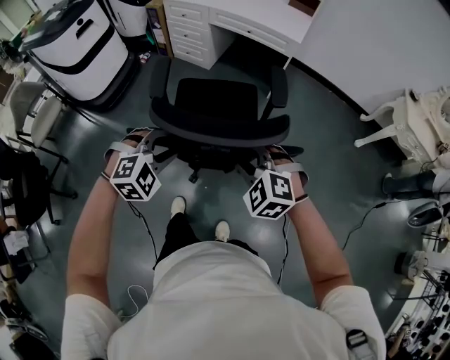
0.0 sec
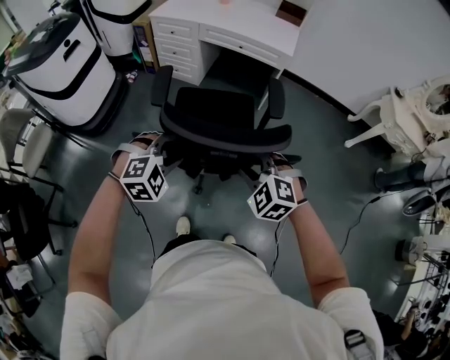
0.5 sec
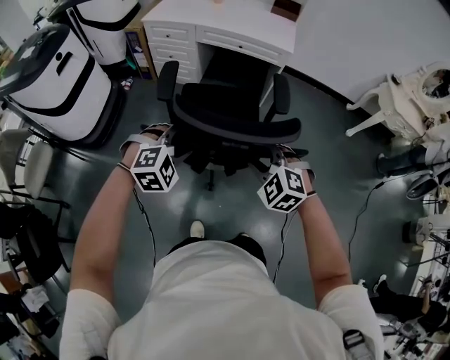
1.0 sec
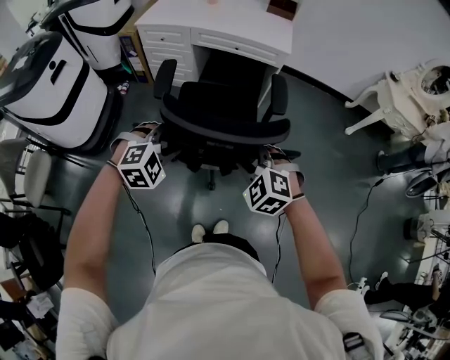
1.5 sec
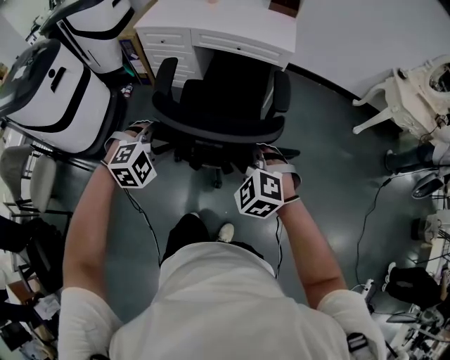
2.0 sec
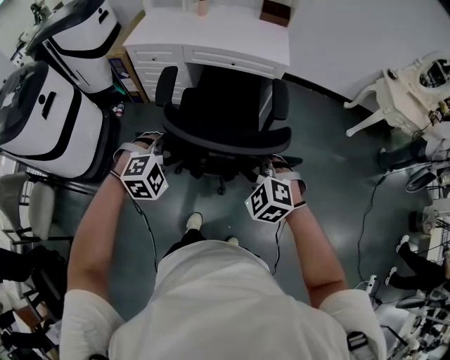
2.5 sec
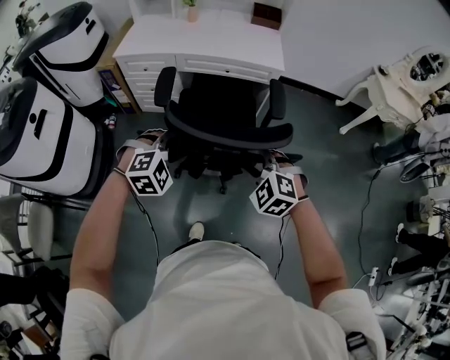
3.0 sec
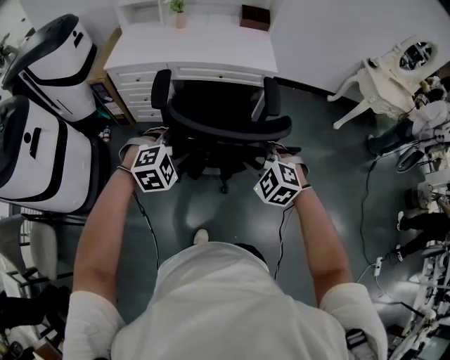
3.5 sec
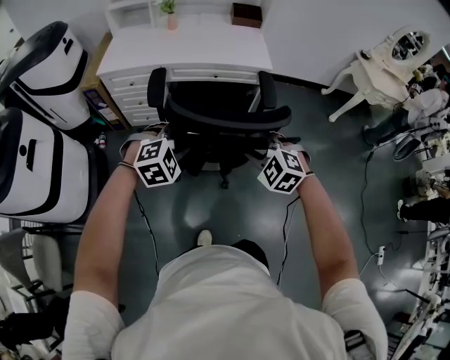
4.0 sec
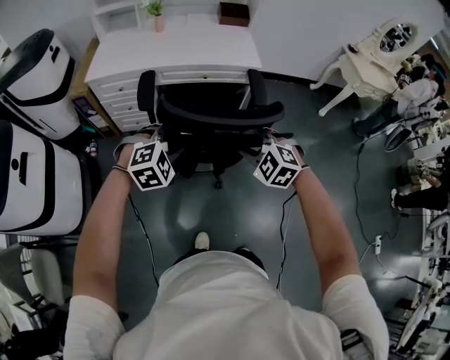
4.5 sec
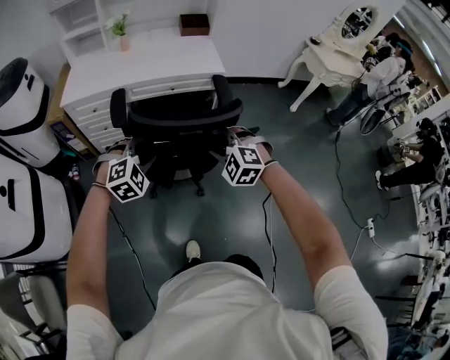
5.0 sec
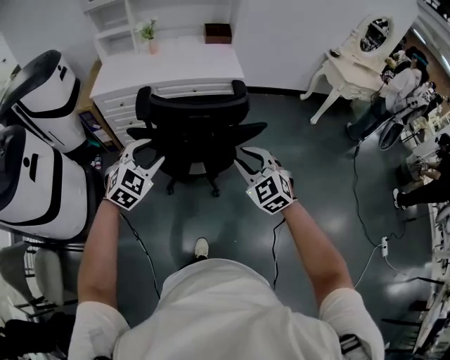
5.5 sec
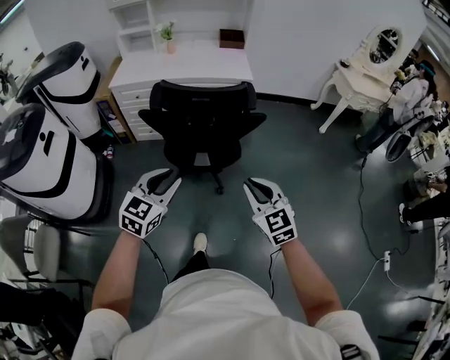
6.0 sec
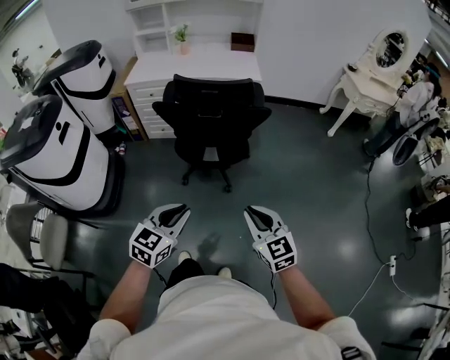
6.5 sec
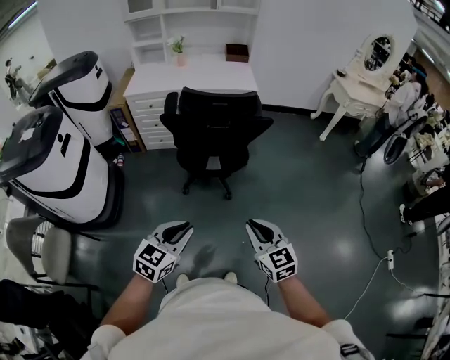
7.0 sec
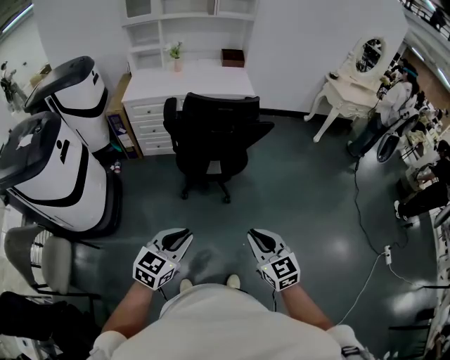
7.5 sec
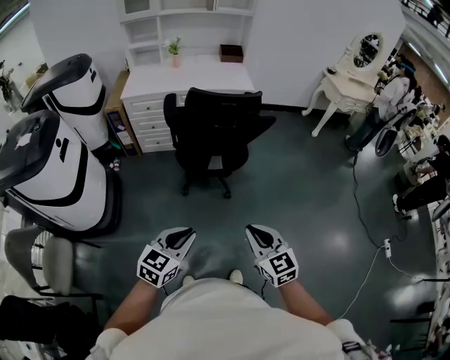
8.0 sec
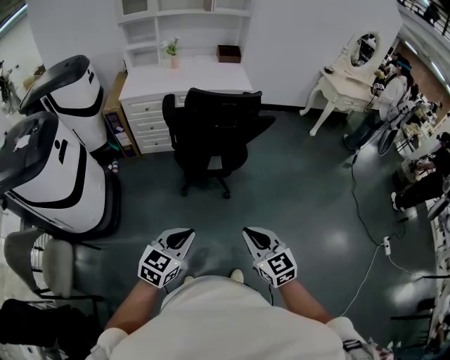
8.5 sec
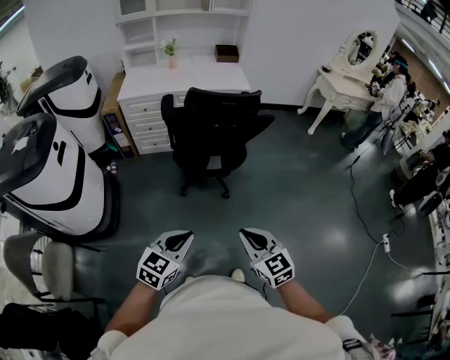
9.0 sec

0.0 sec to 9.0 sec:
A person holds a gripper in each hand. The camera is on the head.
0.0 sec to 2.0 sec: Both grippers move forward and to the left, roughly 25 cm.
2.0 sec to 4.5 sec: The two grippers go about 20 cm forward.
4.5 sec to 7.0 sec: Both grippers are carried backward, about 50 cm. The right gripper twists approximately 50 degrees clockwise, seen from behind. Meanwhile the left gripper twists approximately 50 degrees counterclockwise, seen from behind, and closes up.
7.0 sec to 9.0 sec: The left gripper moves to the left, approximately 5 cm; the right gripper goes some 10 cm to the left and backward.

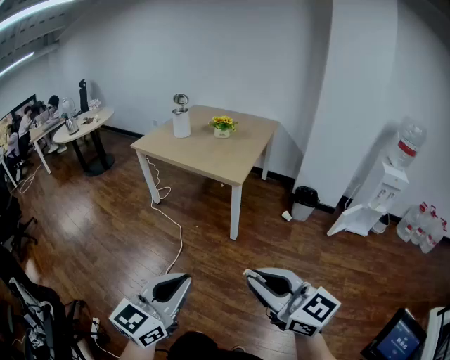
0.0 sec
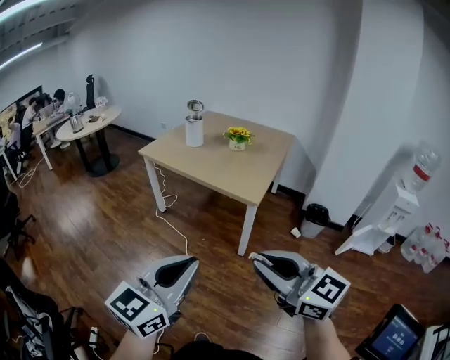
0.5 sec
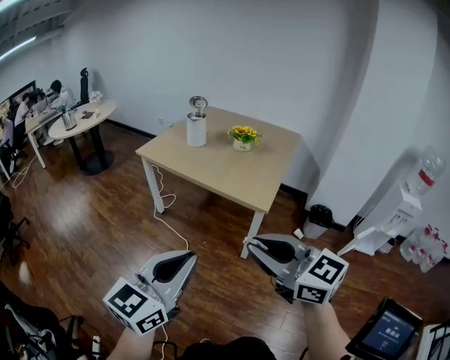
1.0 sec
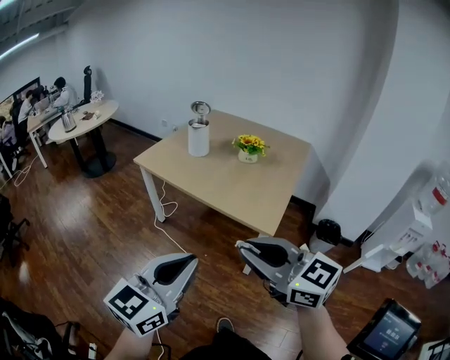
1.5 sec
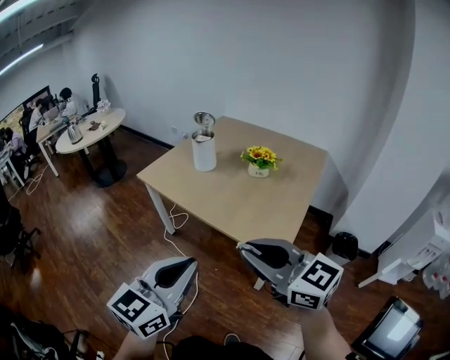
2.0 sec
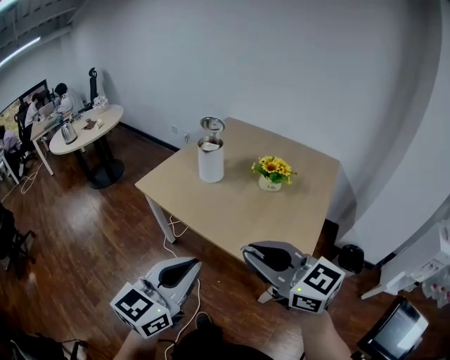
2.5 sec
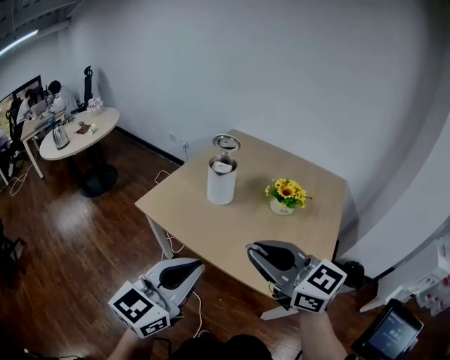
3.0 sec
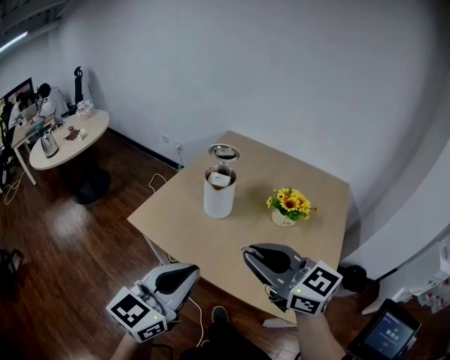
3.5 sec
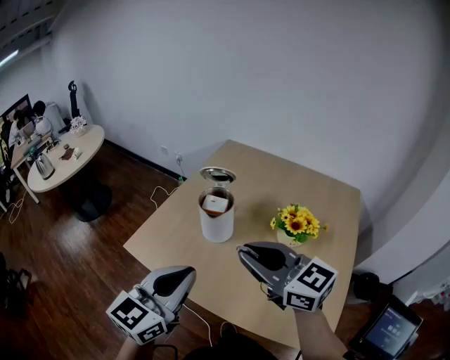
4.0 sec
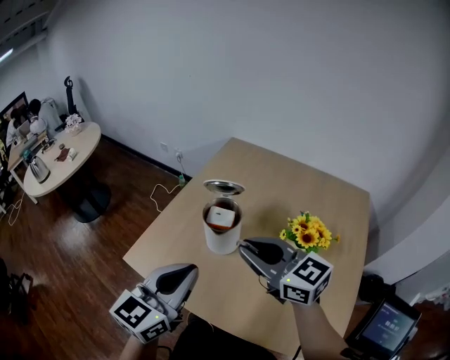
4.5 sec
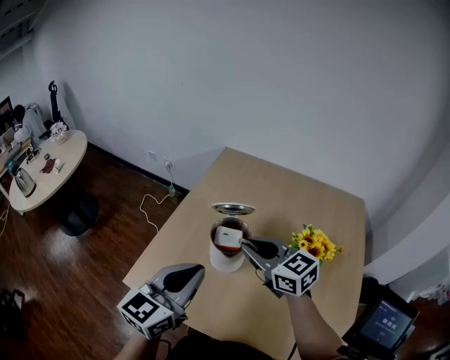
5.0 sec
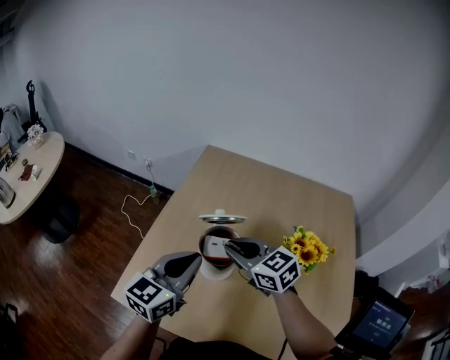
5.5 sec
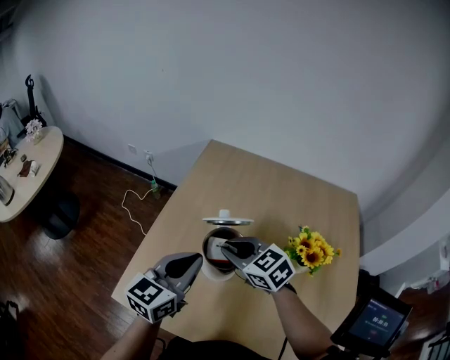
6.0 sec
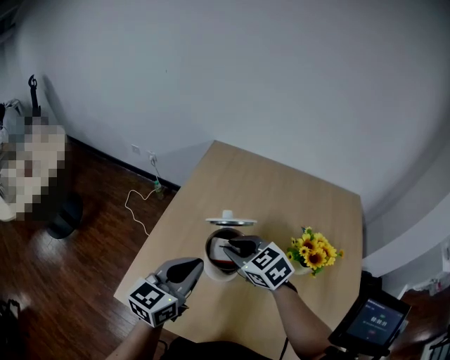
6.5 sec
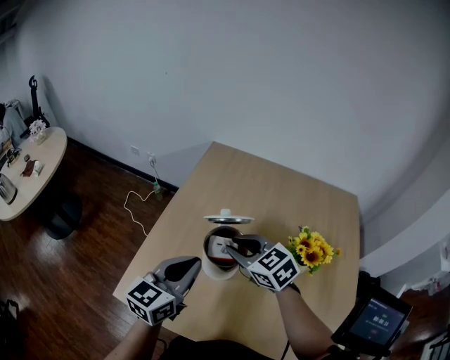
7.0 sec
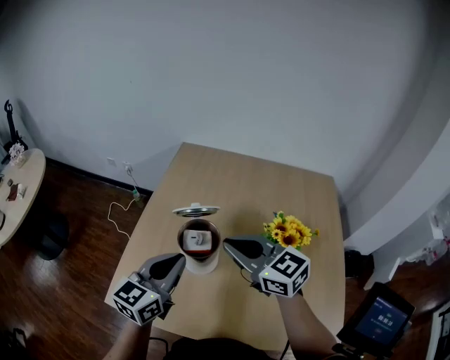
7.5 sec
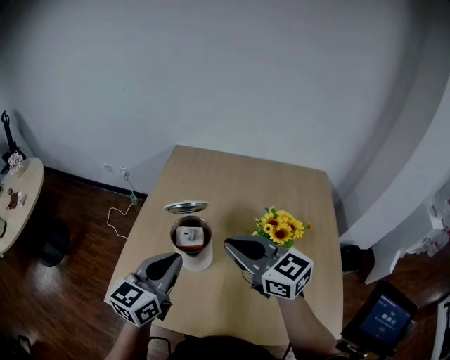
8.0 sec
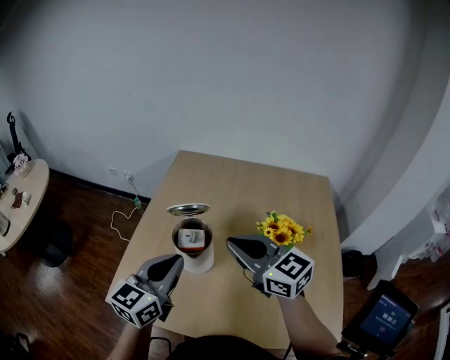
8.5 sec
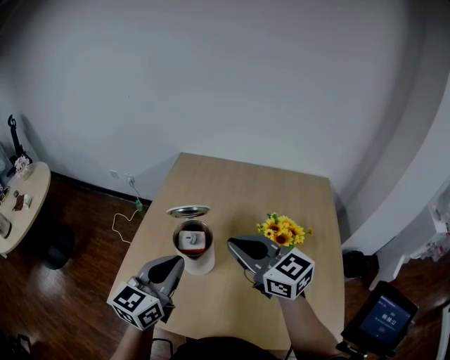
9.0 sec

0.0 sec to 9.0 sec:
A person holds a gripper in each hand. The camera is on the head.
0.0 sec to 2.0 sec: Both grippers are carried forward, about 50 cm.
2.0 sec to 4.5 sec: Both grippers are carried forward, approximately 60 cm.
4.5 sec to 7.0 sec: Both grippers move forward and downward, approximately 20 cm. The right gripper swivels roughly 30 degrees.
7.0 sec to 9.0 sec: The right gripper is displaced upward, backward and to the right by approximately 15 cm, rotates some 30 degrees, and closes up. The left gripper travels backward and upward by roughly 10 cm.

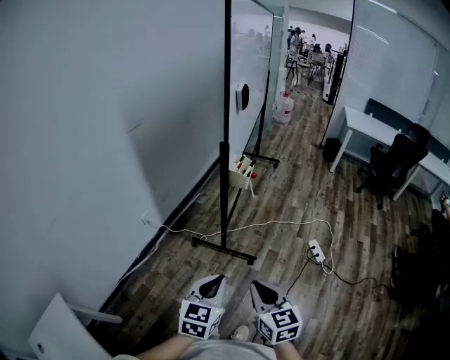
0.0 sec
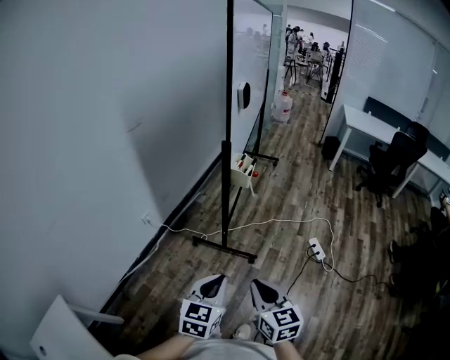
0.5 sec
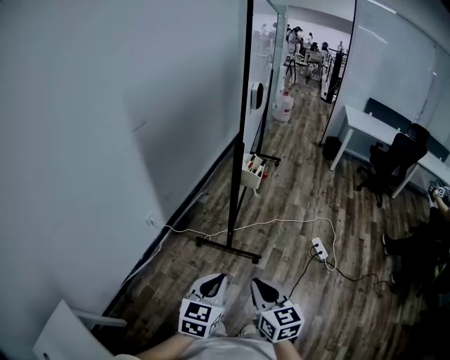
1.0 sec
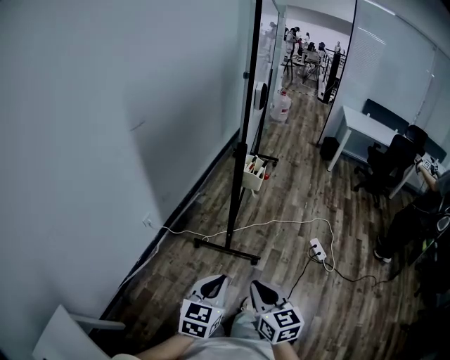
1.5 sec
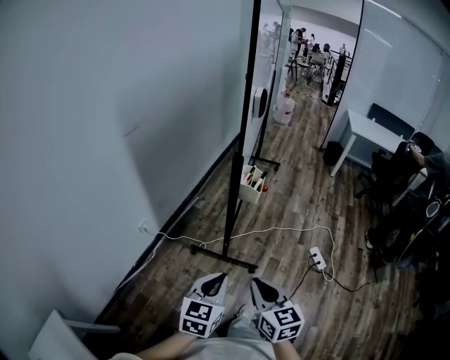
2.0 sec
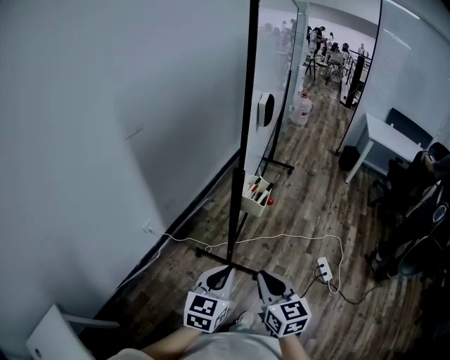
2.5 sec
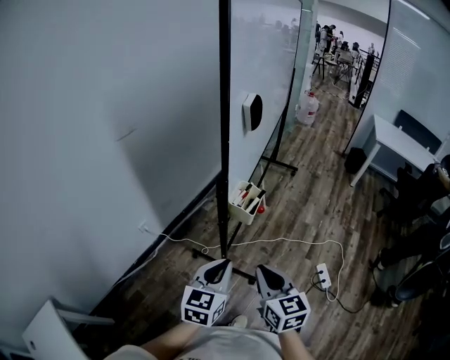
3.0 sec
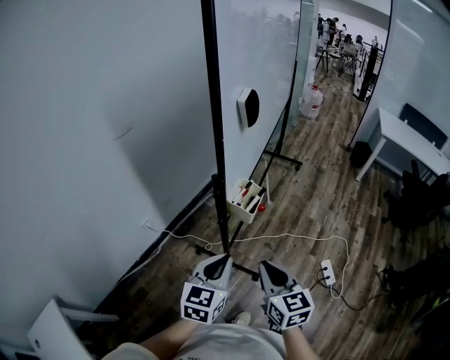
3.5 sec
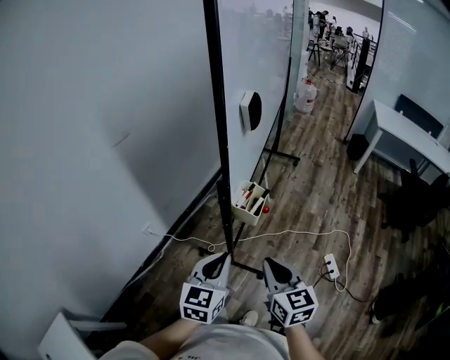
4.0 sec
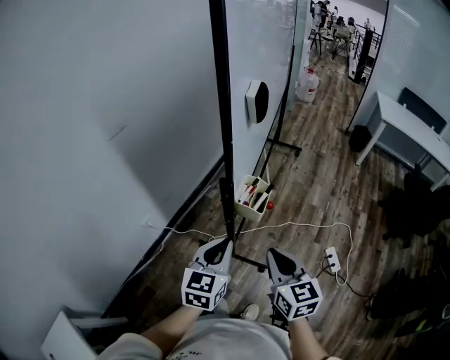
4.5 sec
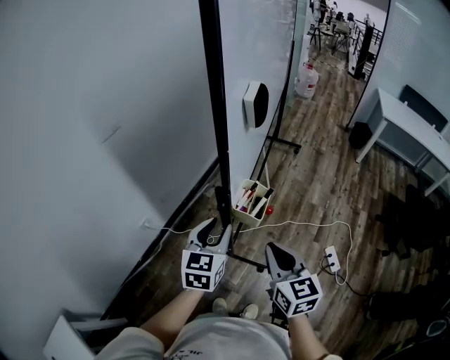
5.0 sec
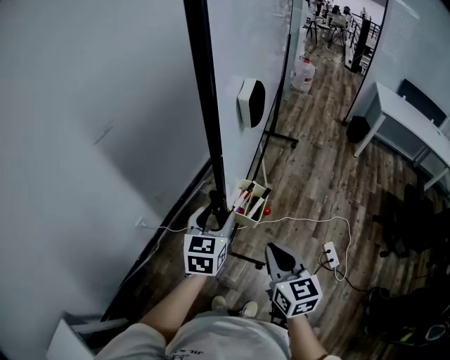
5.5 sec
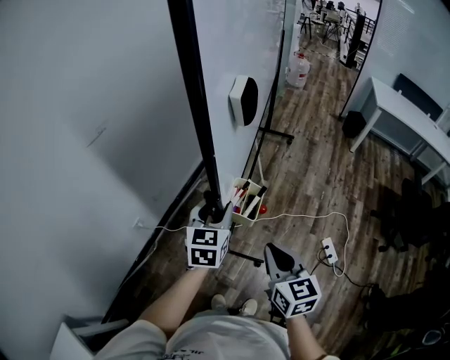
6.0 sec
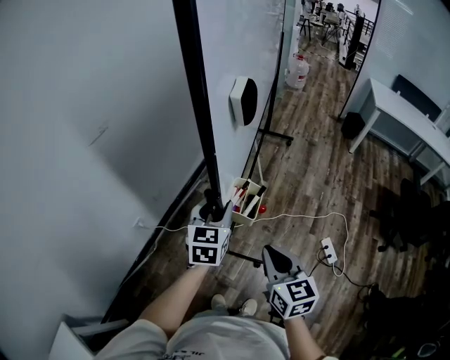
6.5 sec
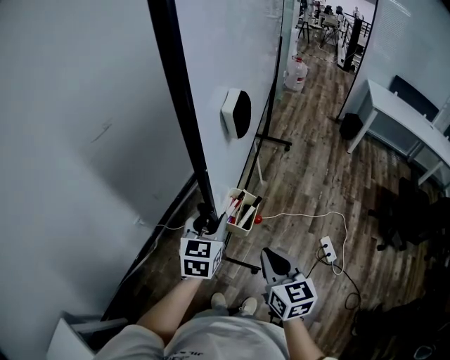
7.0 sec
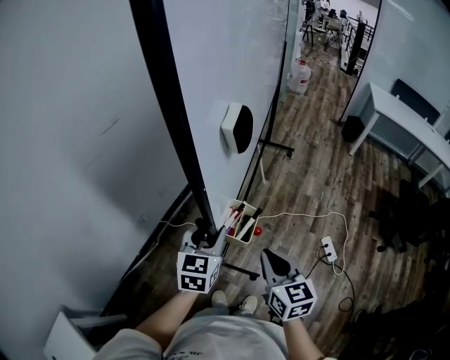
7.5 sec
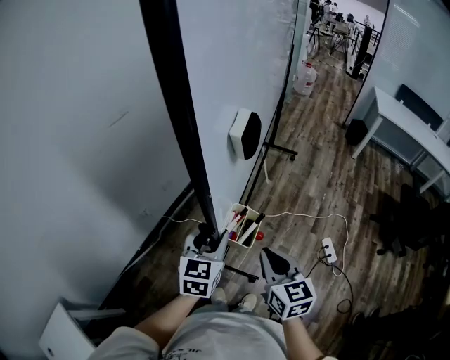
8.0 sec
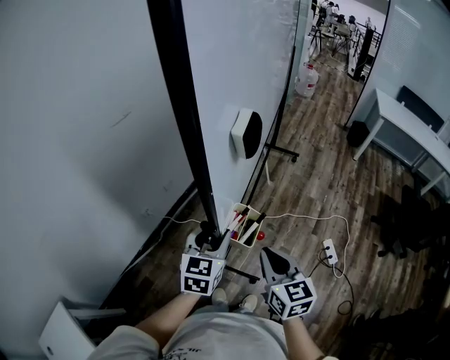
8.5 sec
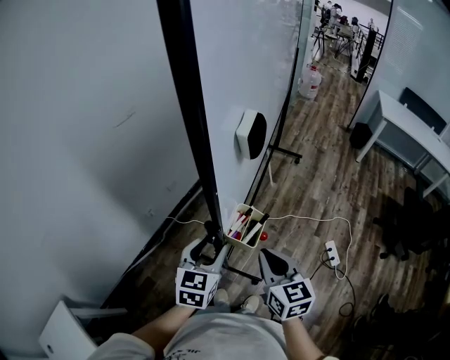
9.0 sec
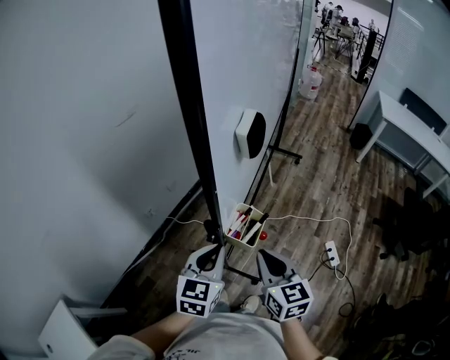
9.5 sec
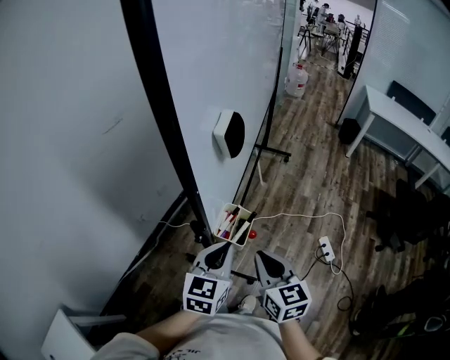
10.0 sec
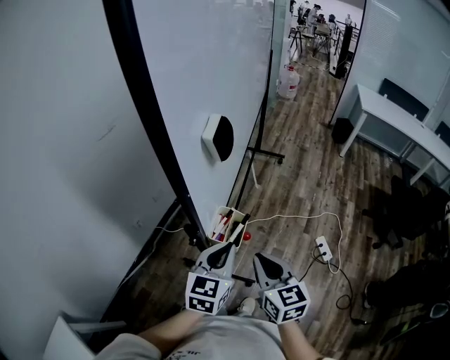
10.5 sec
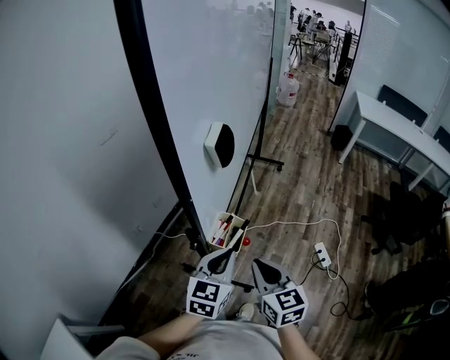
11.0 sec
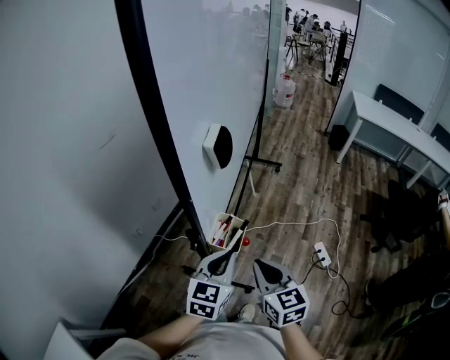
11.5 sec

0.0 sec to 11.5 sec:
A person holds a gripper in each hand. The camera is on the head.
0.0 sec to 2.0 sec: The left gripper heads forward, covering approximately 10 cm. Meanwhile the right gripper heads forward and to the left, covering some 10 cm.
2.0 sec to 4.0 sec: The right gripper shifts roughly 20 cm forward and to the right; the left gripper heads forward, covering some 20 cm.
4.0 sec to 6.0 sec: The left gripper moves forward, about 20 cm, and opens up; the right gripper moves forward, some 10 cm.
6.0 sec to 7.5 sec: The left gripper heads backward, covering roughly 15 cm, while the right gripper shifts roughly 10 cm backward.
7.5 sec to 9.5 sec: The left gripper is displaced backward by about 10 cm, and closes up.
9.5 sec to 11.5 sec: The left gripper travels to the right by approximately 10 cm.
